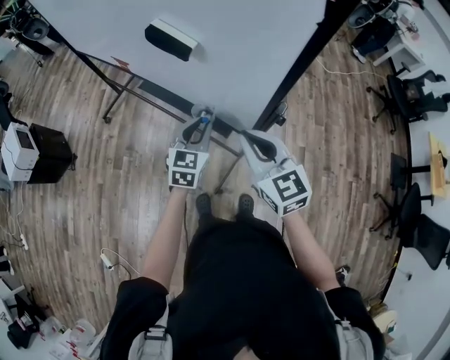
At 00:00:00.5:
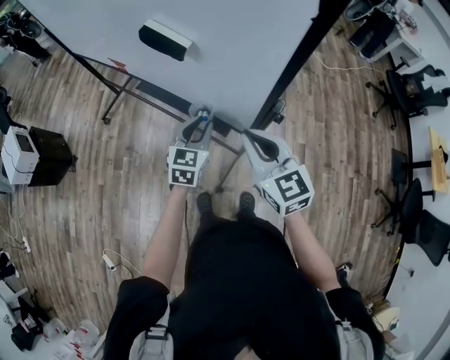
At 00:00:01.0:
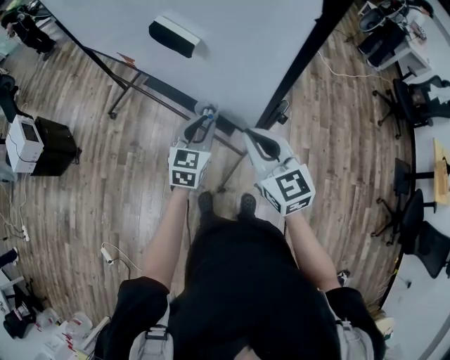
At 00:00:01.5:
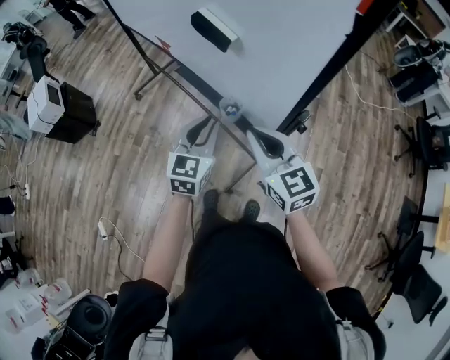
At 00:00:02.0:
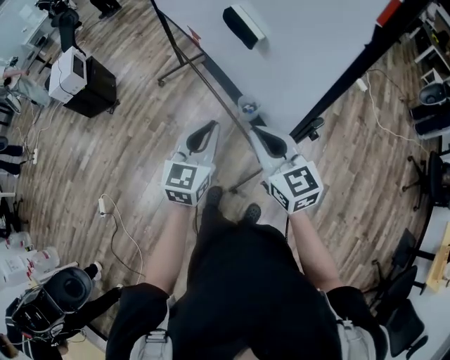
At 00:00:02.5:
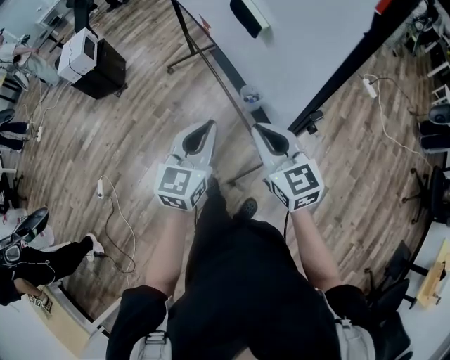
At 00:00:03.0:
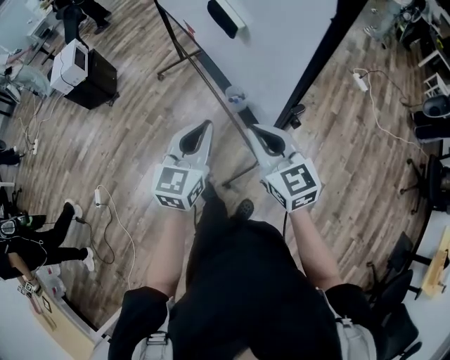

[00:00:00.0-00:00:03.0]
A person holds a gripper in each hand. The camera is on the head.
00:00:00.0 to 00:00:01.5: The left gripper heads upward, covering approximately 5 cm.
00:00:01.5 to 00:00:03.0: The left gripper goes some 10 cm backward and upward.

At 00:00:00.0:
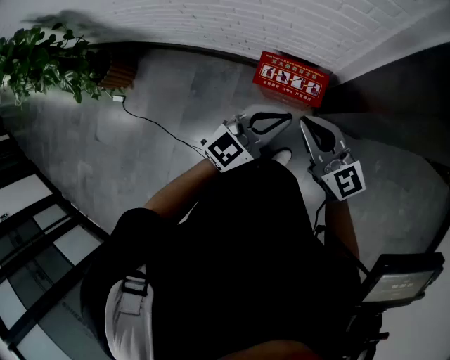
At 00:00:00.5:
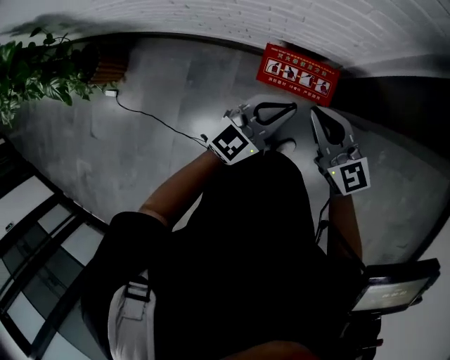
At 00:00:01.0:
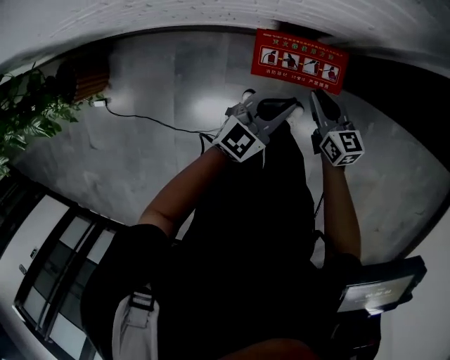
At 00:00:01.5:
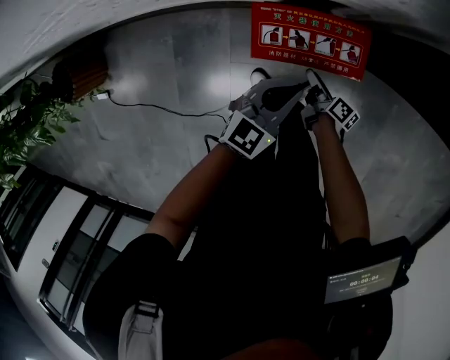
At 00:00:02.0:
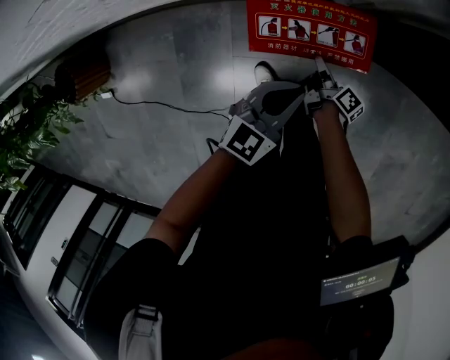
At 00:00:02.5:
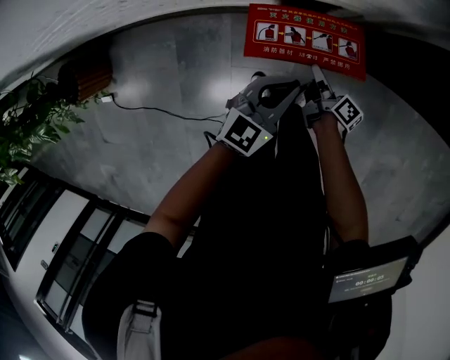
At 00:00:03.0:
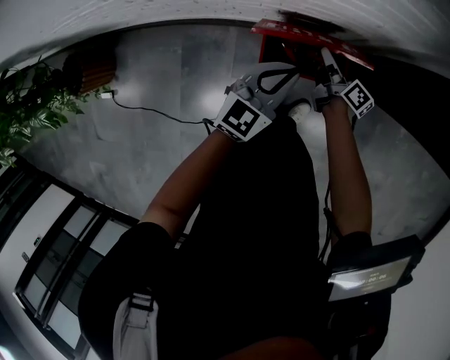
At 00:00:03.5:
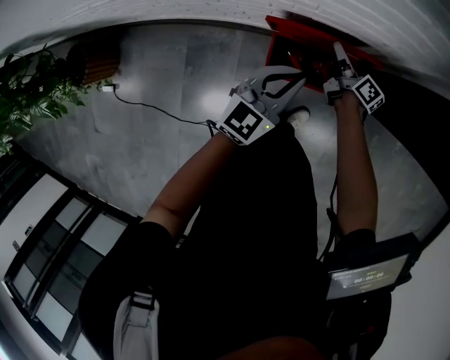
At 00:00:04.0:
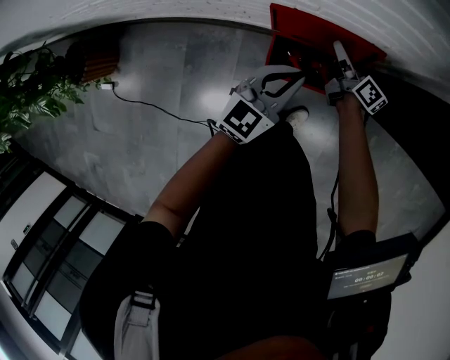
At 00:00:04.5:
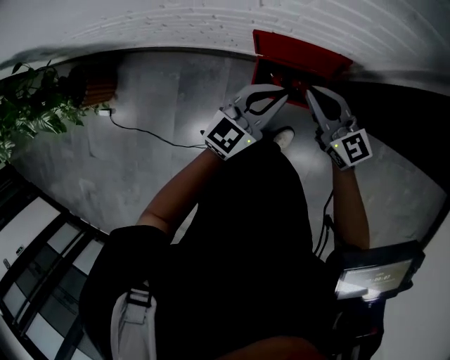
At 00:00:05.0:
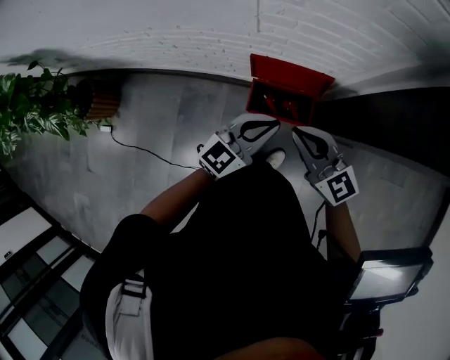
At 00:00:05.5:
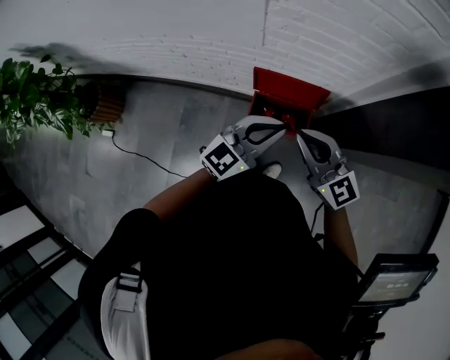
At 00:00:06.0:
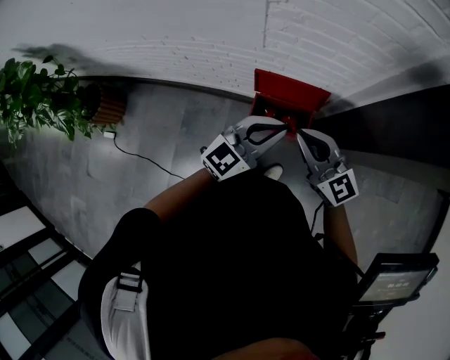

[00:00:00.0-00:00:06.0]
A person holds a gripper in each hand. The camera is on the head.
00:00:00.0 to 00:00:02.0: The right gripper heads downward, covering some 60 cm, rolls clockwise, seen from behind, by roughly 80 degrees, and opens its fingers; the left gripper shifts roughly 35 cm downward.
00:00:02.0 to 00:00:04.0: The right gripper shifts about 30 cm upward and forward, and turns by some 30 degrees, while the left gripper shifts some 15 cm upward, forward and to the left.
00:00:04.0 to 00:00:06.0: The right gripper goes some 40 cm upward and backward, rotates around the line of its fingers by roughly 60 degrees, counterclockwise from behind, and closes its fingers, while the left gripper shifts roughly 25 cm upward and backward.

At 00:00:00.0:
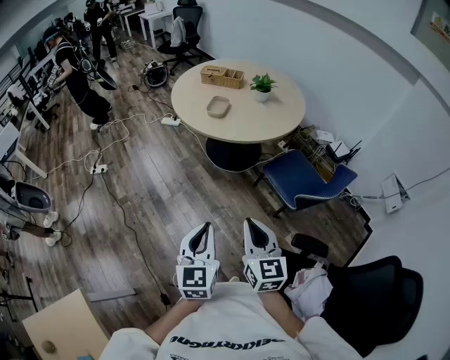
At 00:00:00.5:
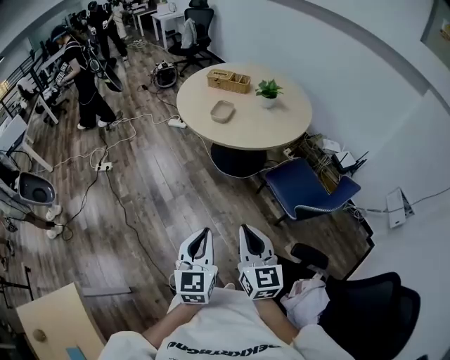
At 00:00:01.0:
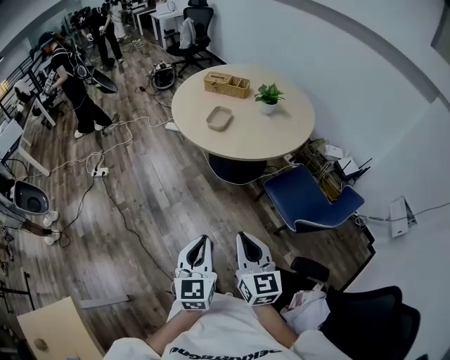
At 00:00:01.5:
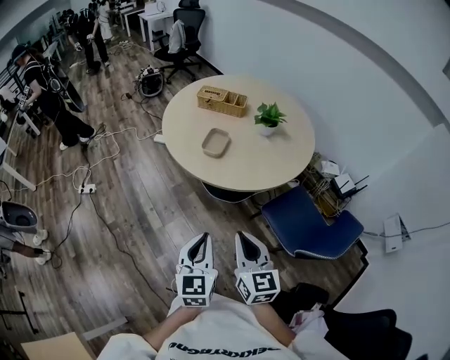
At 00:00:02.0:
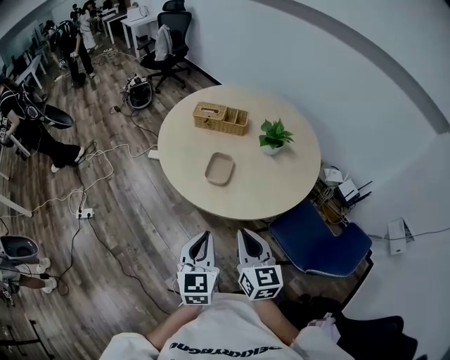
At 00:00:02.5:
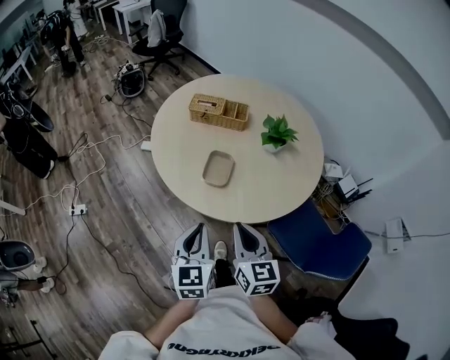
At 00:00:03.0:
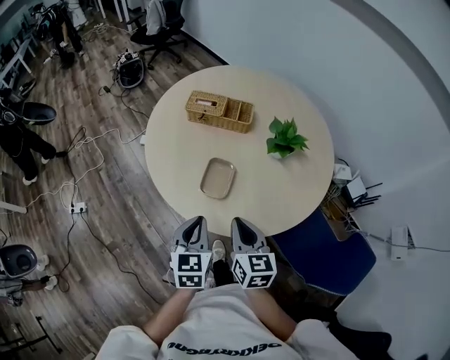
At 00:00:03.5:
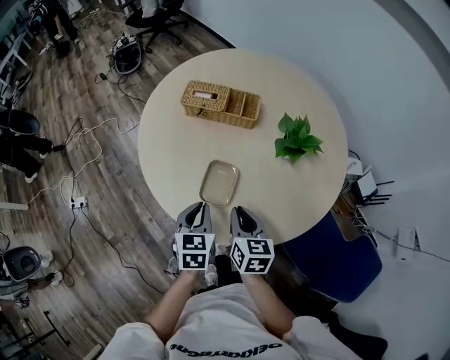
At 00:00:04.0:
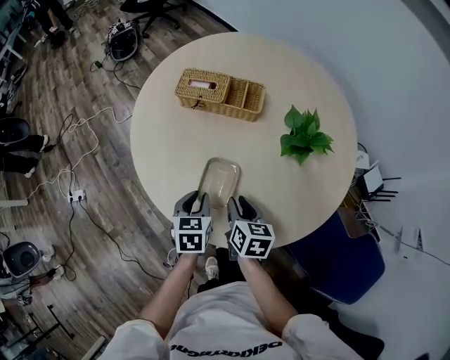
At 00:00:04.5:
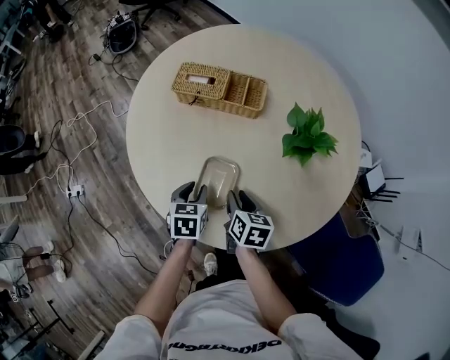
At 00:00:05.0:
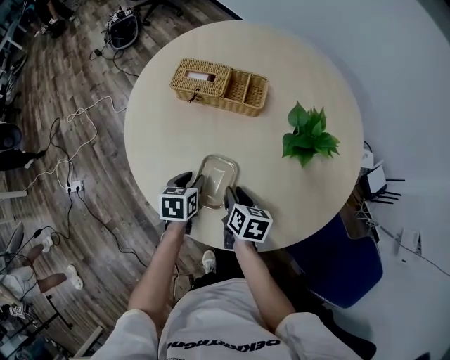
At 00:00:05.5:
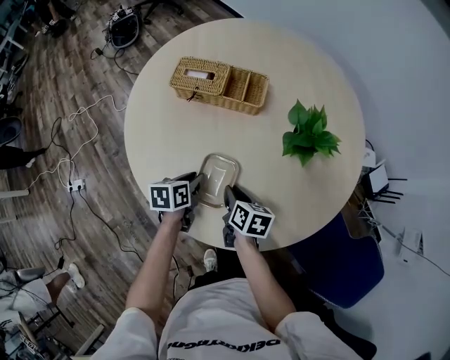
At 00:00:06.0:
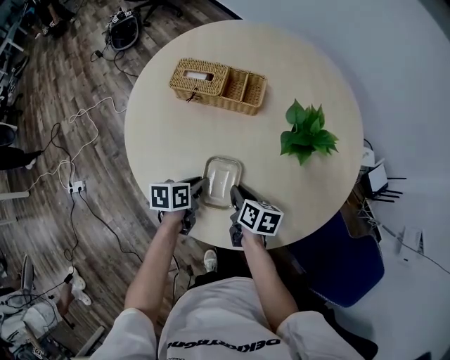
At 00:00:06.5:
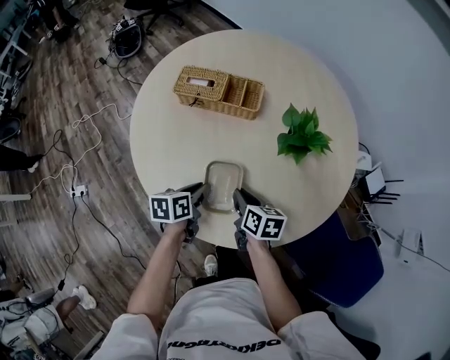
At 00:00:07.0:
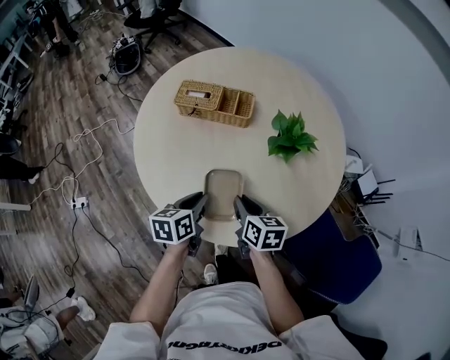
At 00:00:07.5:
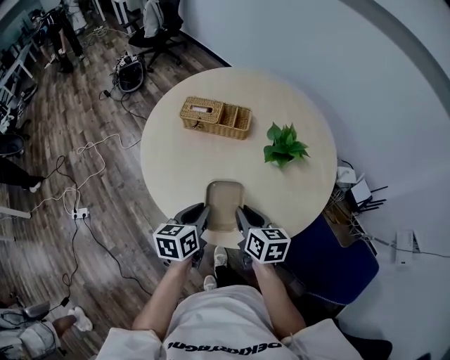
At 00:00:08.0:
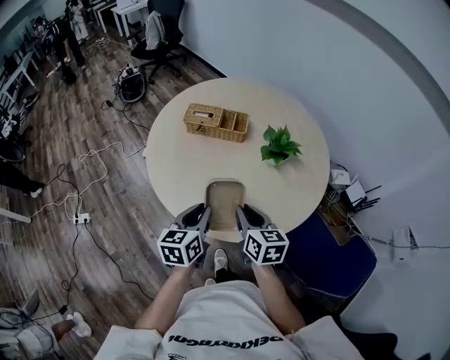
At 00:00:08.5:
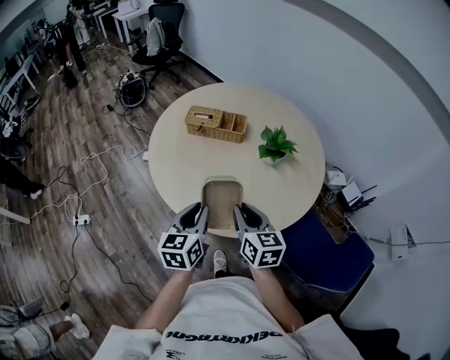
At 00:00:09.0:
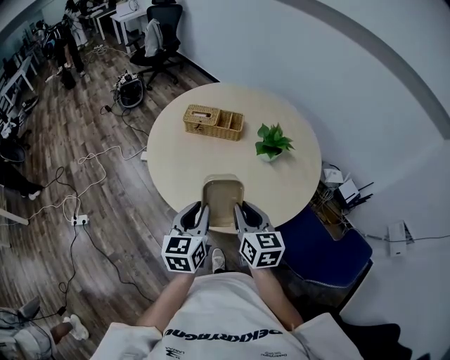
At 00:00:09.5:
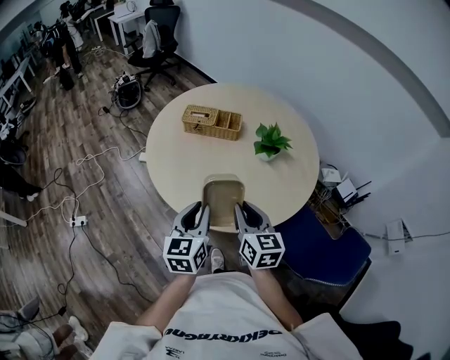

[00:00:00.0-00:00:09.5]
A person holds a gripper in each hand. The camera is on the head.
00:00:00.0 to 00:00:02.0: Both grippers are carried forward, approximately 40 cm.
00:00:02.0 to 00:00:04.0: Both grippers travel together forward and downward, roughly 40 cm. The right gripper turns by roughly 30 degrees, and opens. The left gripper tips its fingers downward by some 30 degrees.
00:00:04.0 to 00:00:05.5: The right gripper heads downward, covering roughly 5 cm, while the left gripper is displaced downward and forward by some 10 cm, and changes its angle by roughly 30 degrees.
00:00:05.5 to 00:00:07.5: The grippers both shift upward and backward by roughly 20 cm. The right gripper swivels some 20 degrees. Meanwhile the left gripper turns by roughly 20 degrees.
00:00:07.5 to 00:00:09.5: The grippers both shift backward and upward by approximately 15 cm. The right gripper swivels some 20 degrees; the left gripper swivels about 20 degrees.

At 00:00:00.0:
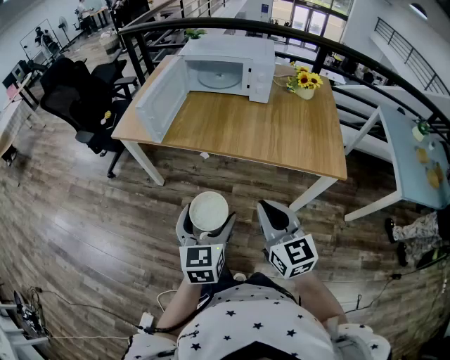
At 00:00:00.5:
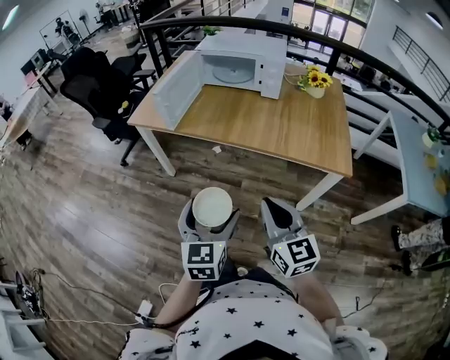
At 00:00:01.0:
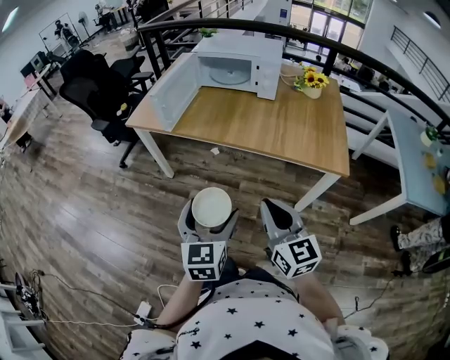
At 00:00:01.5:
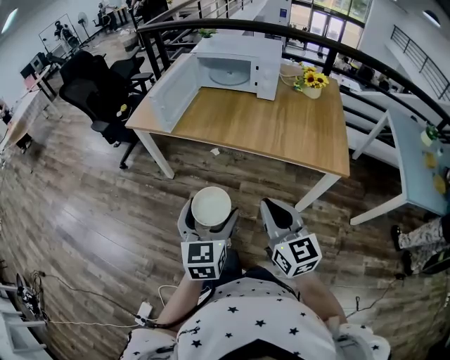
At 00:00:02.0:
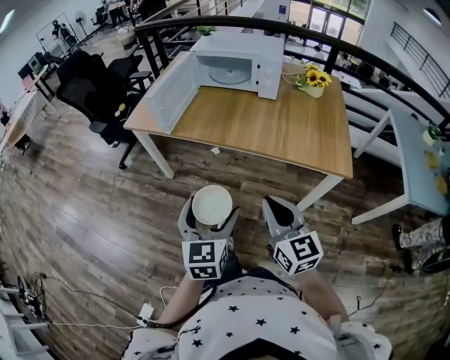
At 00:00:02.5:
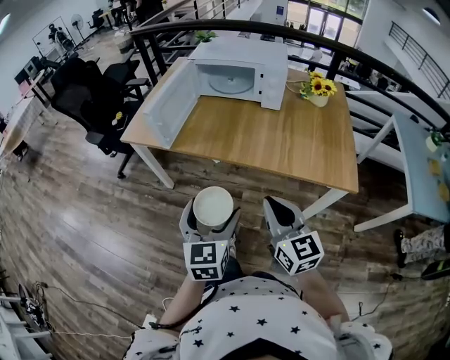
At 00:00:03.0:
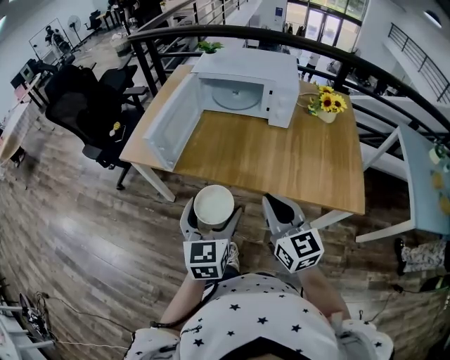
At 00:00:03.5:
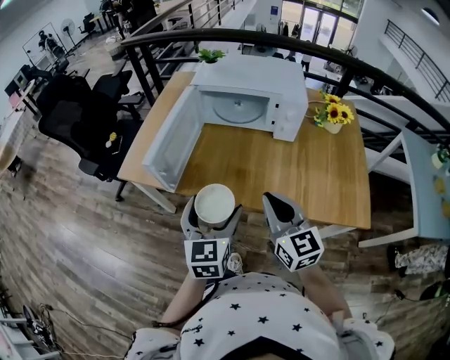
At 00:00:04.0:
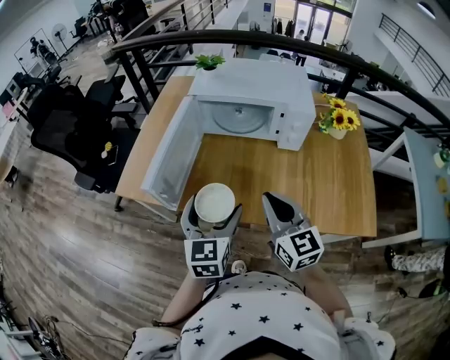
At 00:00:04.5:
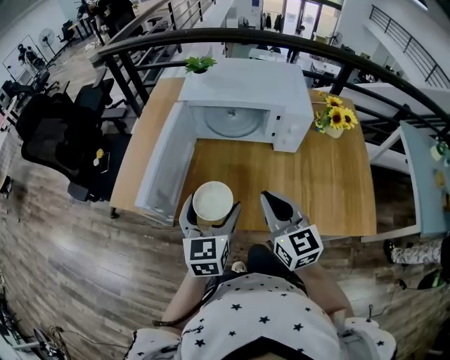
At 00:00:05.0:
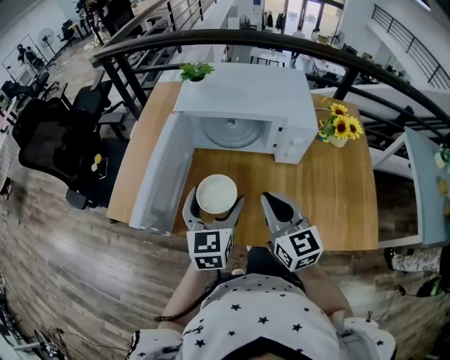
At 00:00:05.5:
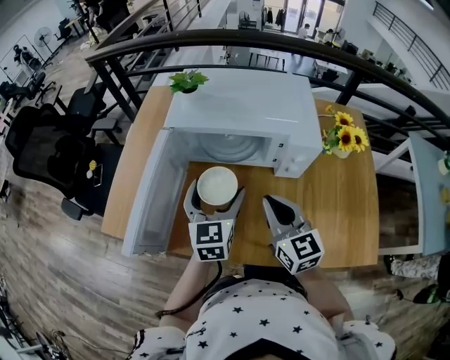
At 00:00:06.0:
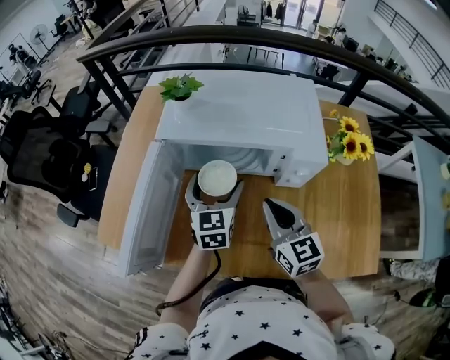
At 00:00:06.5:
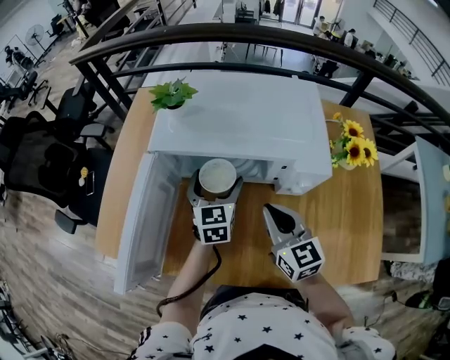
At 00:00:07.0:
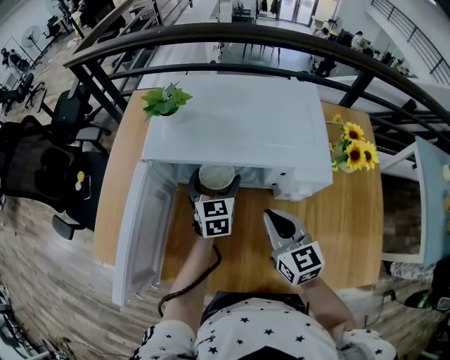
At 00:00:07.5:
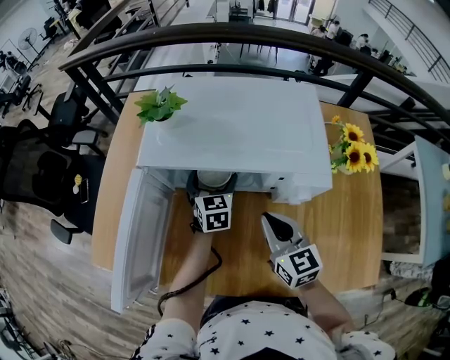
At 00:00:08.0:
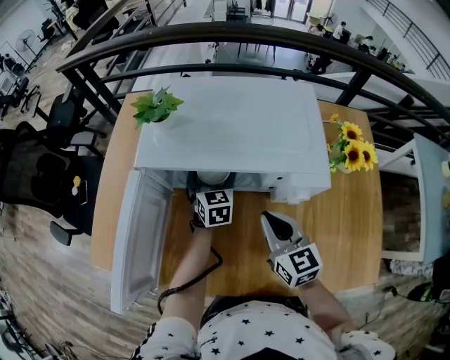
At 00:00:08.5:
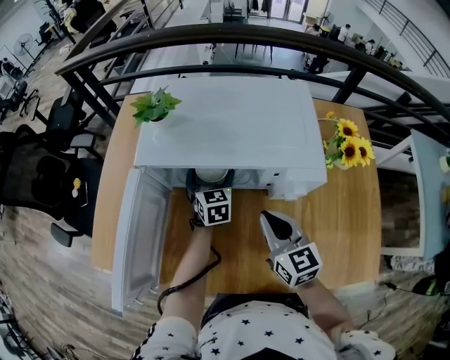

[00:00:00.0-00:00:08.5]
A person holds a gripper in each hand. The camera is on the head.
00:00:02.0 to 00:00:04.0: The grippers both shift forward by some 35 cm.
00:00:04.0 to 00:00:06.5: Both grippers move forward, roughly 30 cm.
00:00:06.5 to 00:00:08.5: The left gripper goes roughly 10 cm forward and downward.
